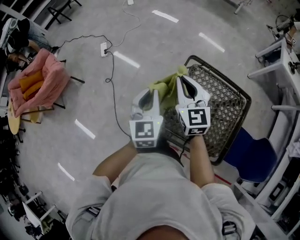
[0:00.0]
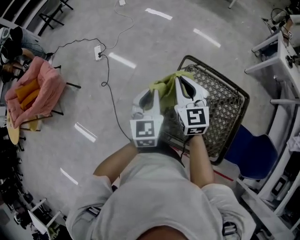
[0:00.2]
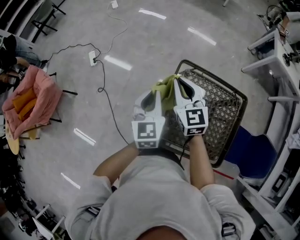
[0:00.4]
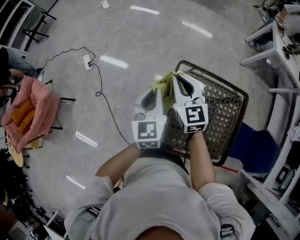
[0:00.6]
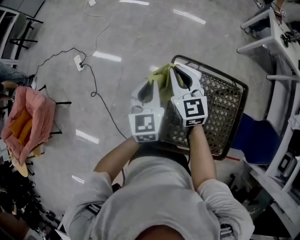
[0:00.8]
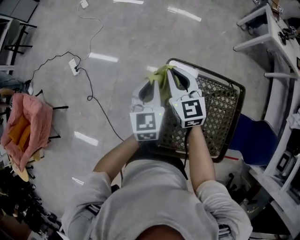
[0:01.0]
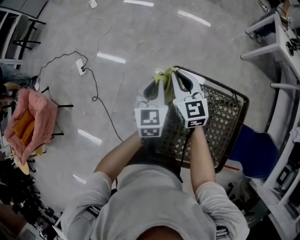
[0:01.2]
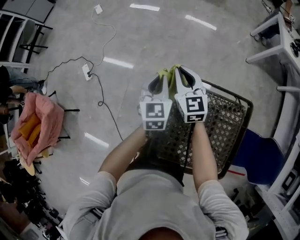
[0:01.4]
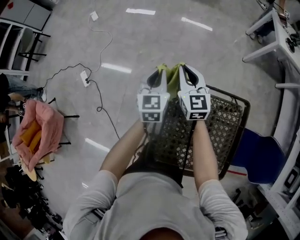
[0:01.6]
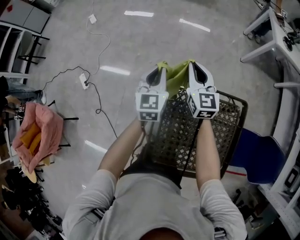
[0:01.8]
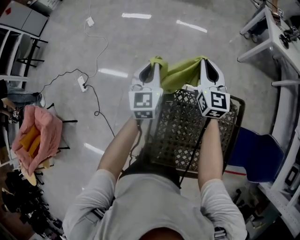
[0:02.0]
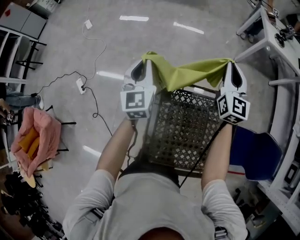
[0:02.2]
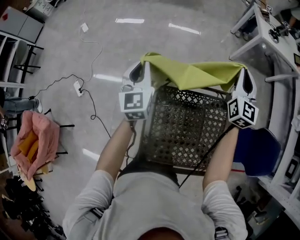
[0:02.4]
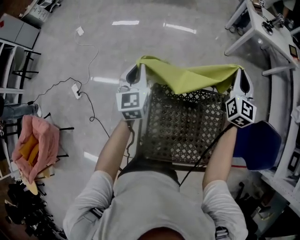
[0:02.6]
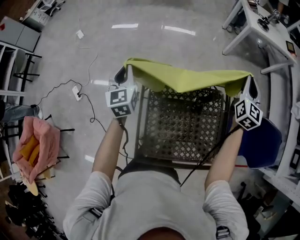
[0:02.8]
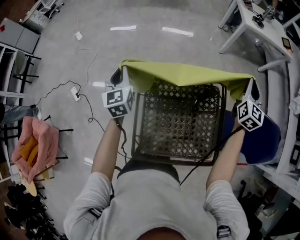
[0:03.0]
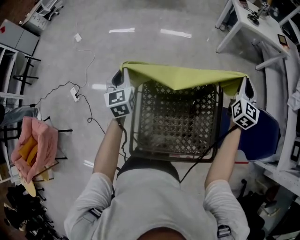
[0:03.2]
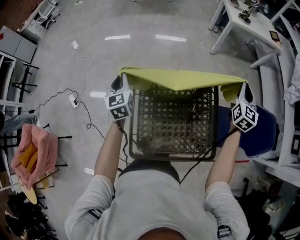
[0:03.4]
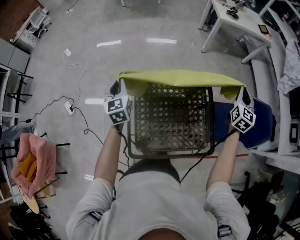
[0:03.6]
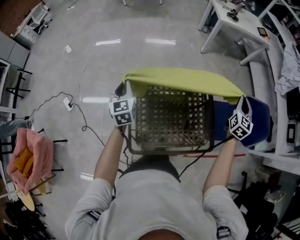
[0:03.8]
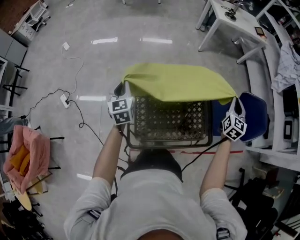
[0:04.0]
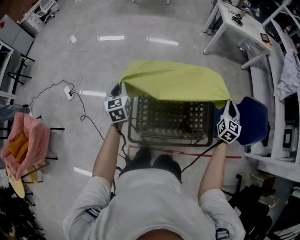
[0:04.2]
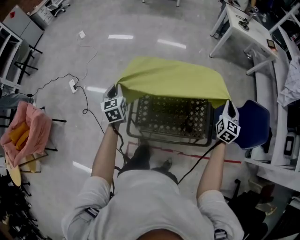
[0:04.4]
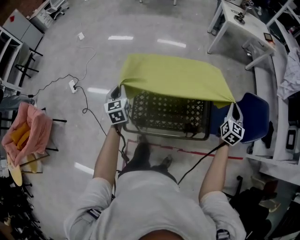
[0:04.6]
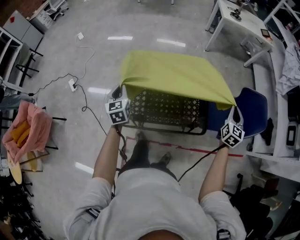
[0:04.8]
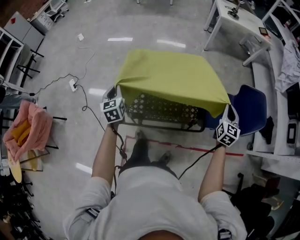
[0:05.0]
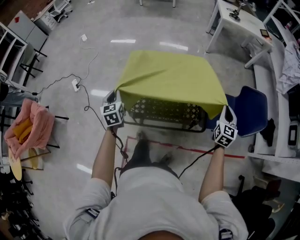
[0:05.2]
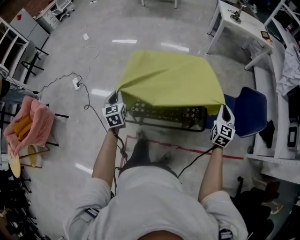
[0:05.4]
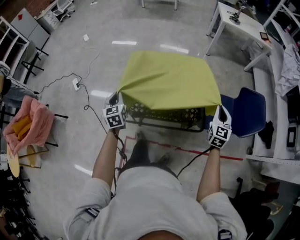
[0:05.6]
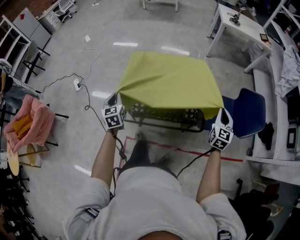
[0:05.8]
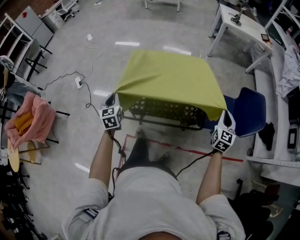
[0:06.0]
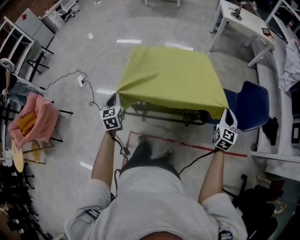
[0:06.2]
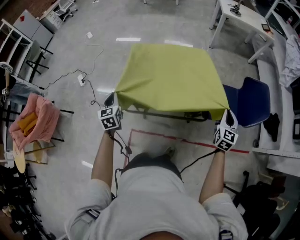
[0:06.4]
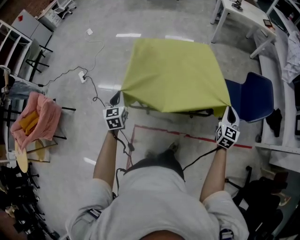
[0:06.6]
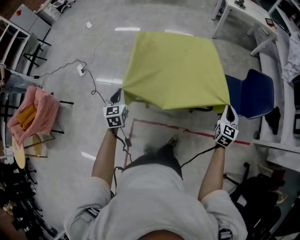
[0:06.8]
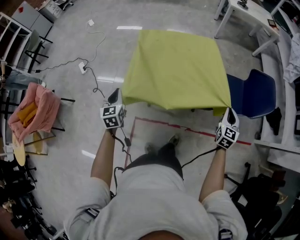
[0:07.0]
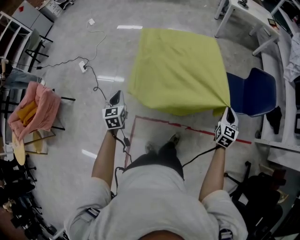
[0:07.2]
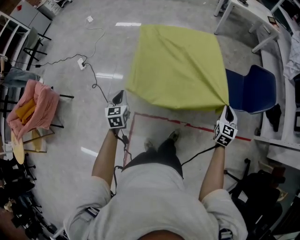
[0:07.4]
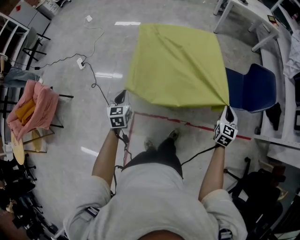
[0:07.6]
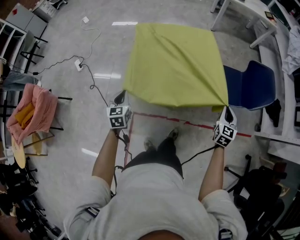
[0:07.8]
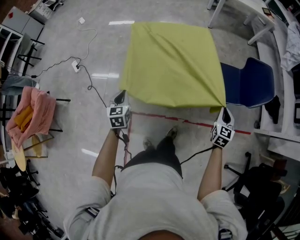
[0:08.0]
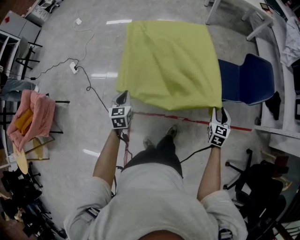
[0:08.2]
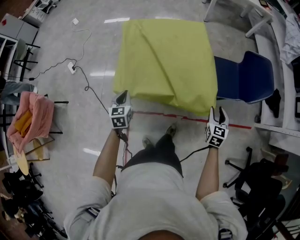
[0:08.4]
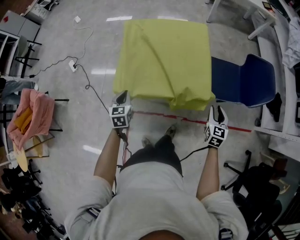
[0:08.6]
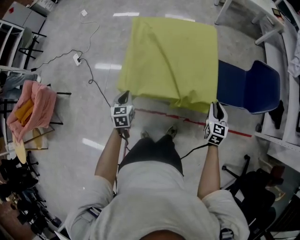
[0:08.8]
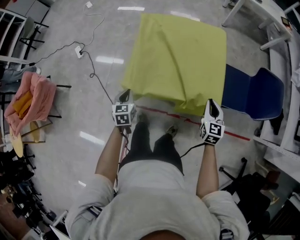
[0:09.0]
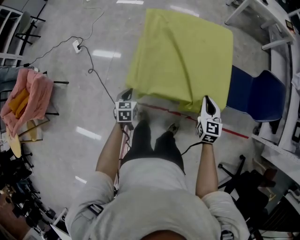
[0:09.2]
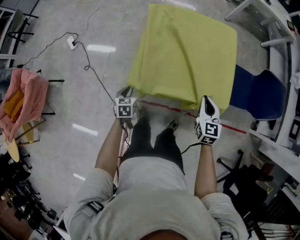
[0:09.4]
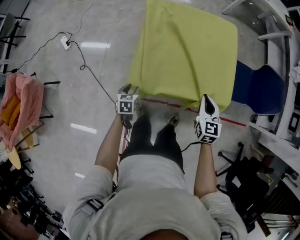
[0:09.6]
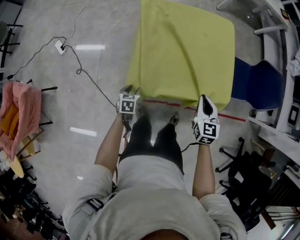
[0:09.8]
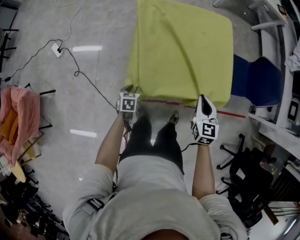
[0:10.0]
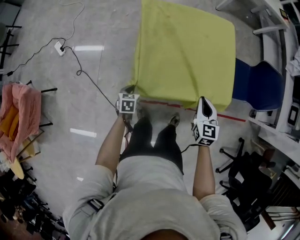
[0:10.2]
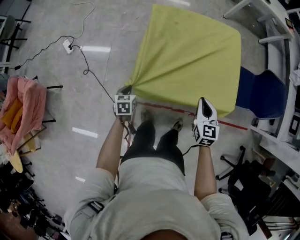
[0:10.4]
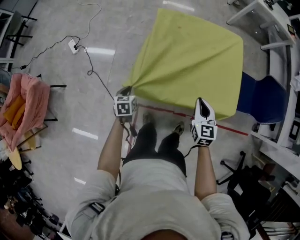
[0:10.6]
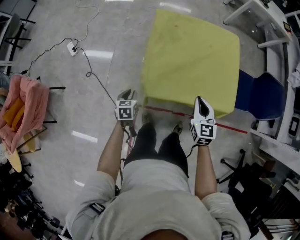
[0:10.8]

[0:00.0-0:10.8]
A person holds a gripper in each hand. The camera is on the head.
0:00.0 to 0:01.6: The grippers both shift forward and to the right by approximately 35 cm.
0:01.6 to 0:03.0: The right gripper is displaced to the right by about 50 cm, and swivels roughly 40 degrees. Meanwhile the left gripper heads upward and backward, covering some 10 cm.
0:03.0 to 0:04.6: Both grippers travel together backward, about 30 cm.
0:04.6 to 0:06.2: The two grippers go roughly 15 cm backward.
0:06.2 to 0:07.8: Both grippers move backward and downward, some 10 cm.
0:07.8 to 0:09.2: The left gripper heads downward, covering roughly 15 cm. The right gripper heads to the left and forward, covering roughly 20 cm, turns by approximately 20 degrees, and opens, then closes again.
0:09.2 to 0:10.8: The right gripper travels to the left by about 15 cm. Meanwhile the left gripper heads to the left, covering about 10 cm.

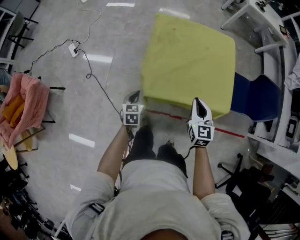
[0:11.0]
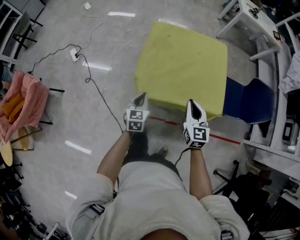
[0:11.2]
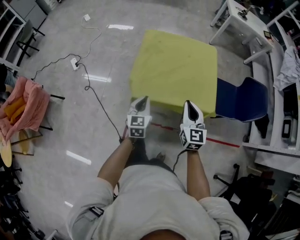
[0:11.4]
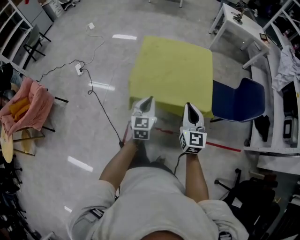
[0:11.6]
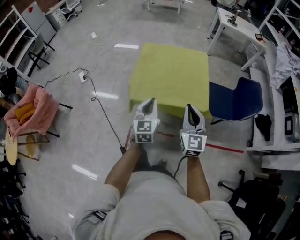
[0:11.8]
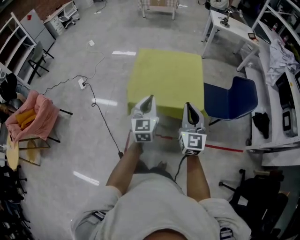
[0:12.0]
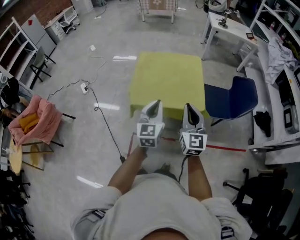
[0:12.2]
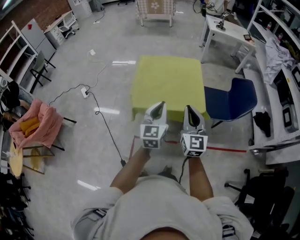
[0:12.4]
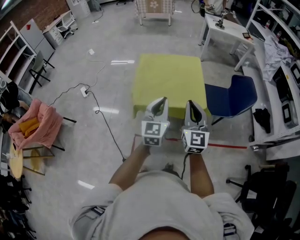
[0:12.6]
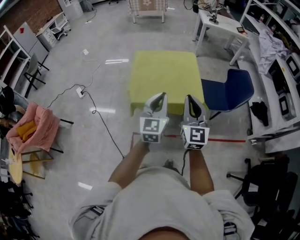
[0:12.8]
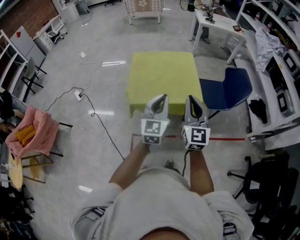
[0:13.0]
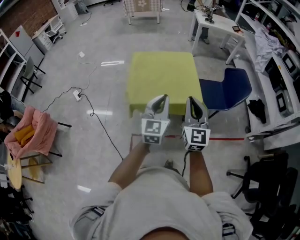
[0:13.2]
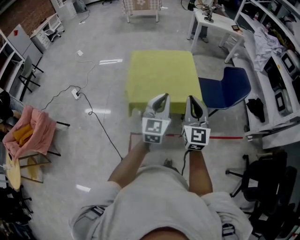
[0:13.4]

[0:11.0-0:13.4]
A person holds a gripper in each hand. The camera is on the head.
0:11.0 to 0:12.2: The right gripper is displaced upward, backward and to the right by approximately 30 cm, and changes its angle by some 30 degrees, while the left gripper heads upward, to the right and backward, covering approximately 40 cm, and points its fingers about 30 degrees further upward.
0:12.2 to 0:13.4: The right gripper changes place by approximately 5 cm.

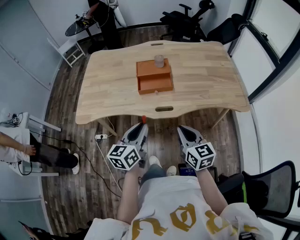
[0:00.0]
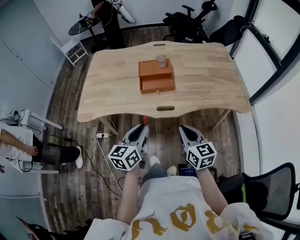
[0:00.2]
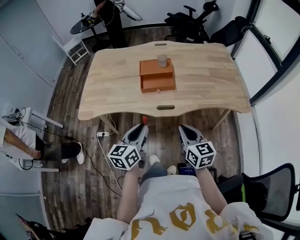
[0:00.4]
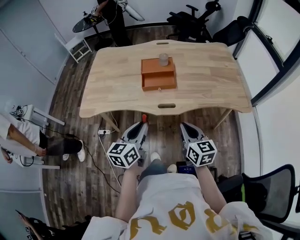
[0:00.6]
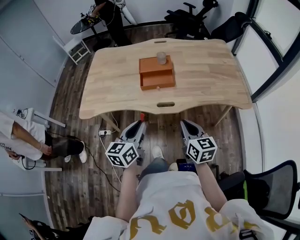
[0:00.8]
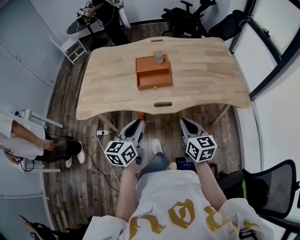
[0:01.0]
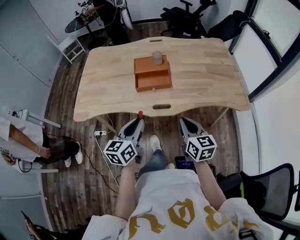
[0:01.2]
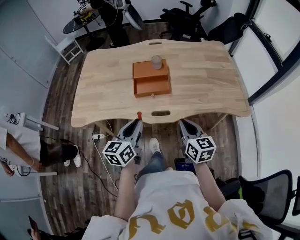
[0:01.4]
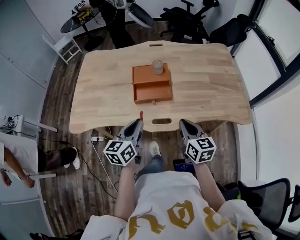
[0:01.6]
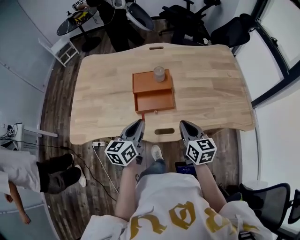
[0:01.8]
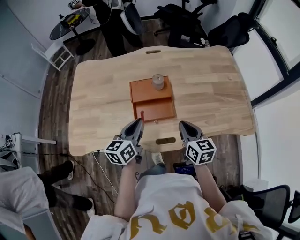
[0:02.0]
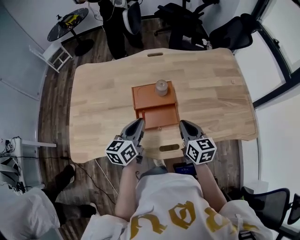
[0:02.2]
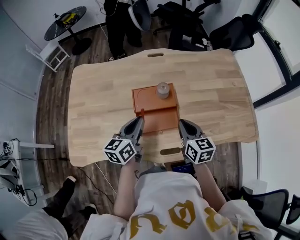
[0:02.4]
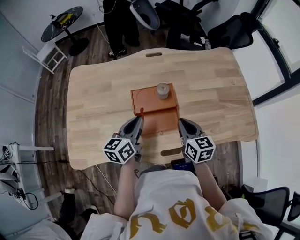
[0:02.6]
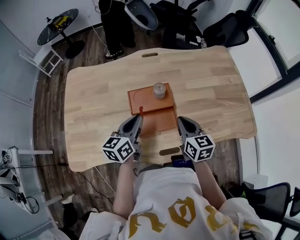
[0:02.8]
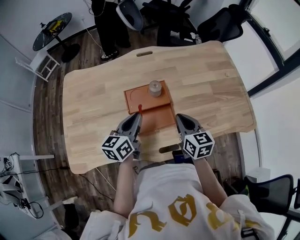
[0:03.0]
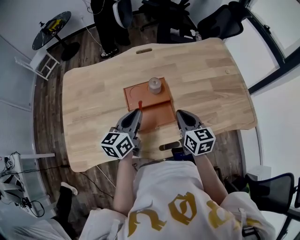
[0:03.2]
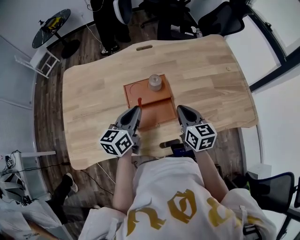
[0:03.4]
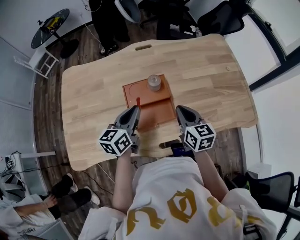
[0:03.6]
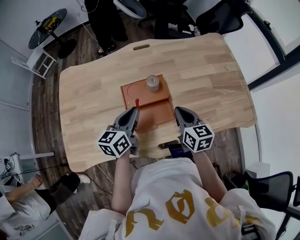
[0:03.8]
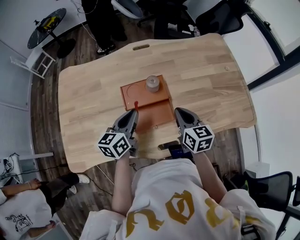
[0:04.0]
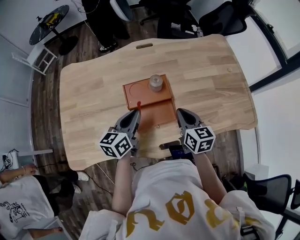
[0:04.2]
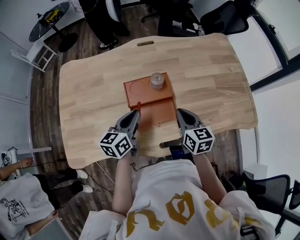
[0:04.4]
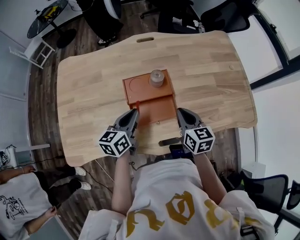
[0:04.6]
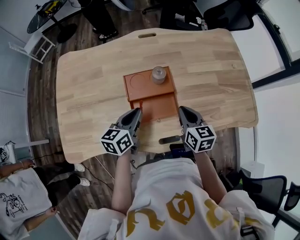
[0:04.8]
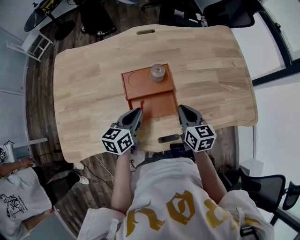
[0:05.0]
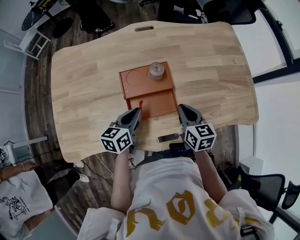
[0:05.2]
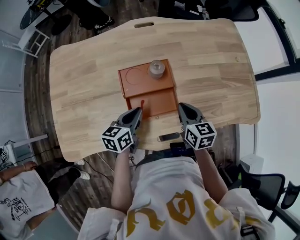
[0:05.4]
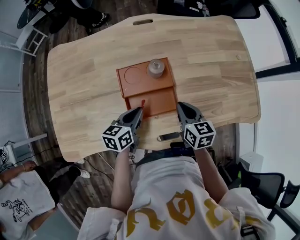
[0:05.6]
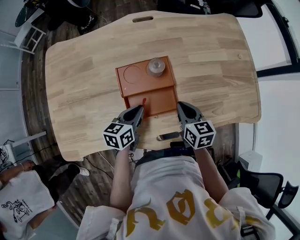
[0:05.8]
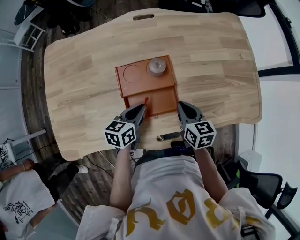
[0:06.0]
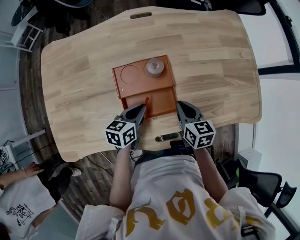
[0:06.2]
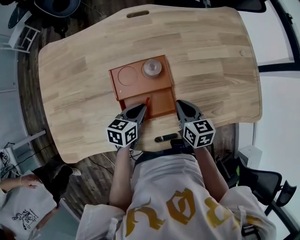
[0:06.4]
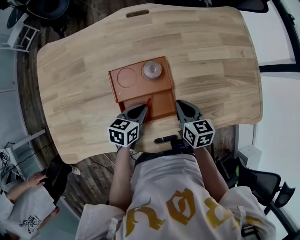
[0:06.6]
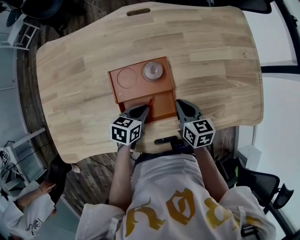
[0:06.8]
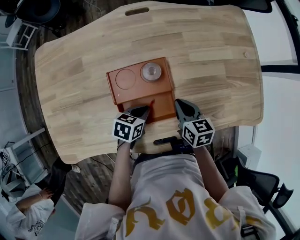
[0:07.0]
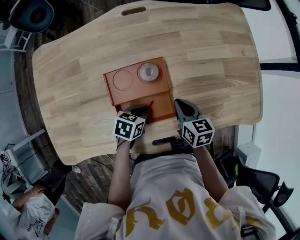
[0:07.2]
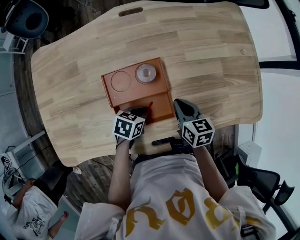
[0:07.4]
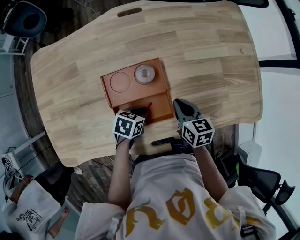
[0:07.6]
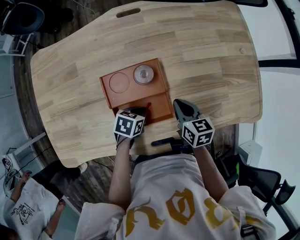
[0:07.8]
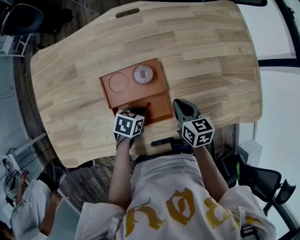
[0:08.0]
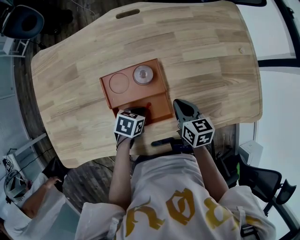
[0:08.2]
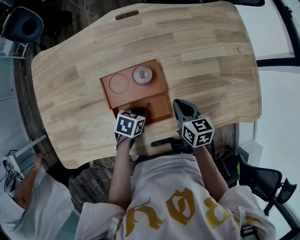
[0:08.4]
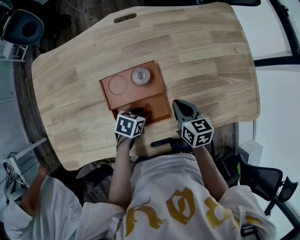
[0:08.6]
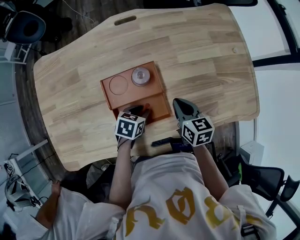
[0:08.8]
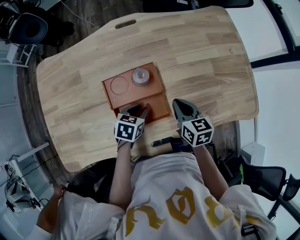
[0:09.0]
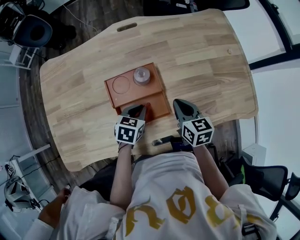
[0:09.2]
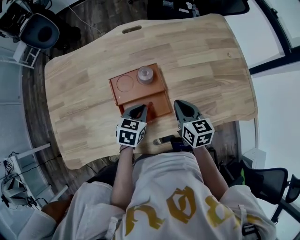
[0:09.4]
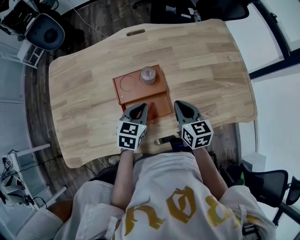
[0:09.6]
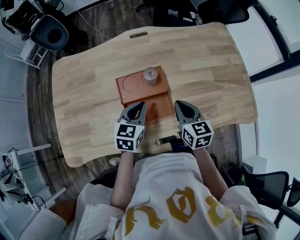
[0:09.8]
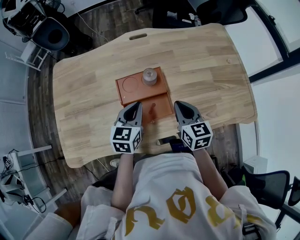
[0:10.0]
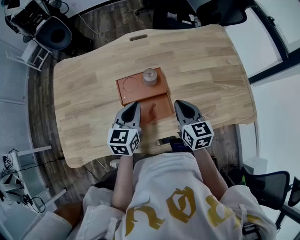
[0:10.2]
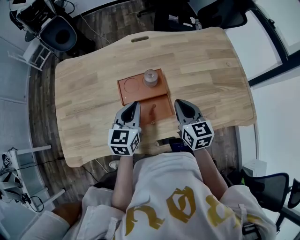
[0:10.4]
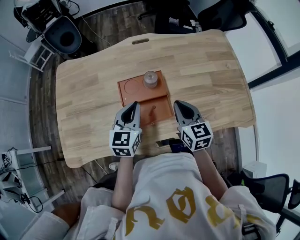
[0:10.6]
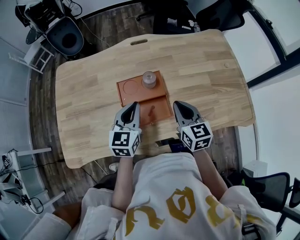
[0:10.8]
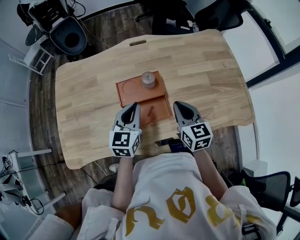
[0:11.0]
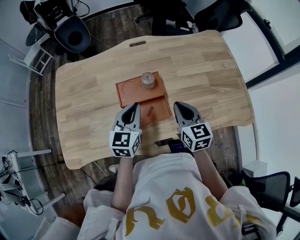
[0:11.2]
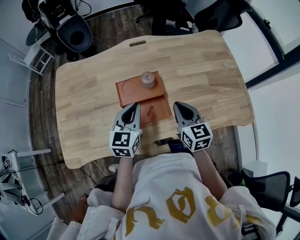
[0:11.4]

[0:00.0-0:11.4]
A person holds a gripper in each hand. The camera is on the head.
0:00.0 to 0:01.4: Both grippers travel together forward, about 5 cm.
0:01.4 to 0:02.8: The grippers both shift forward by roughly 30 cm.
0:02.8 to 0:04.2: The grippers stay close to where they were, moving slightly.
0:04.2 to 0:05.6: The left gripper travels downward by roughly 10 cm. The right gripper goes about 5 cm downward.
0:05.6 to 0:07.2: The right gripper heads downward and forward, covering roughly 10 cm. The left gripper heads downward and to the right, covering some 10 cm, and swivels about 30 degrees.
0:07.2 to 0:08.6: There are only small adjustments of the grippers.
0:08.6 to 0:10.0: The left gripper travels upward by about 20 cm, swivels about 50 degrees, and closes up; the right gripper moves upward, about 10 cm.
0:10.0 to 0:11.4: The grippers make only small movements.
